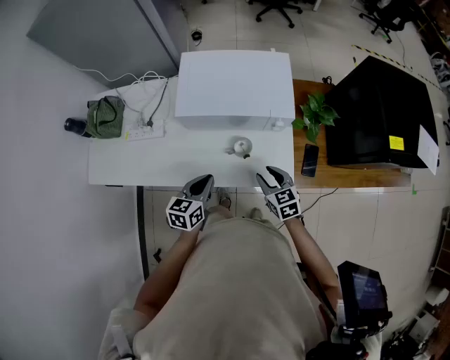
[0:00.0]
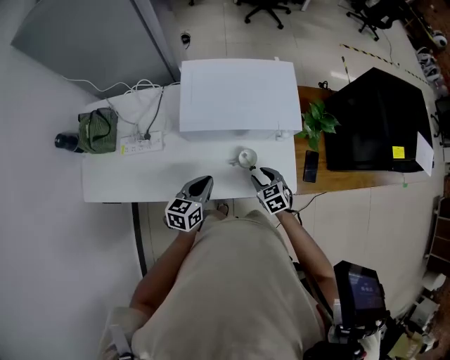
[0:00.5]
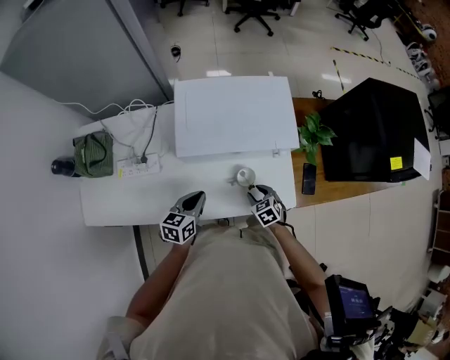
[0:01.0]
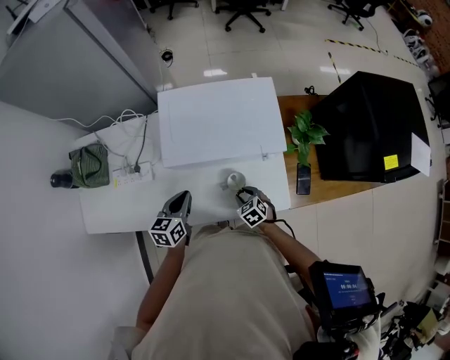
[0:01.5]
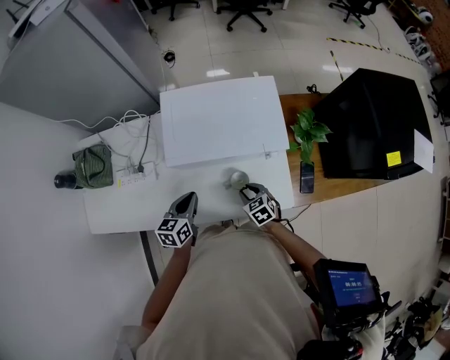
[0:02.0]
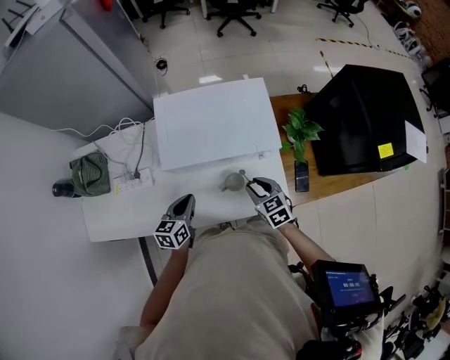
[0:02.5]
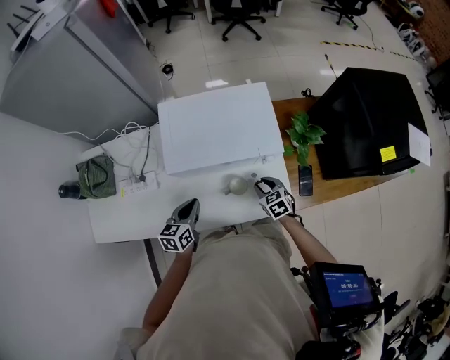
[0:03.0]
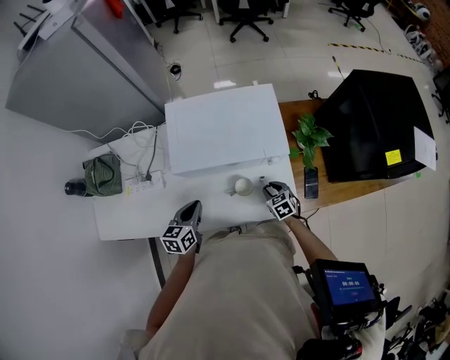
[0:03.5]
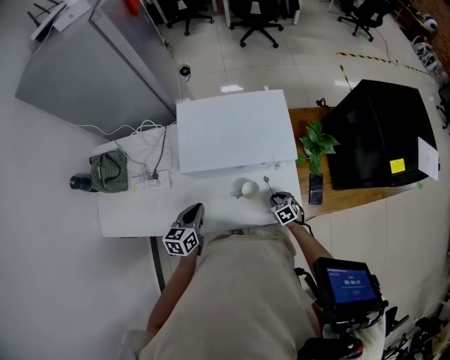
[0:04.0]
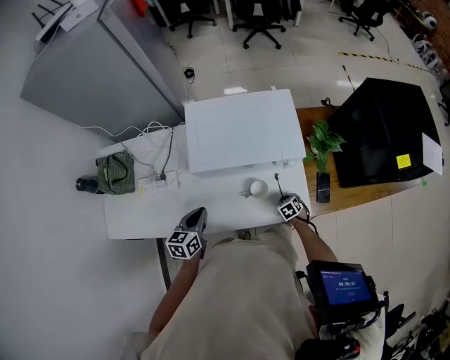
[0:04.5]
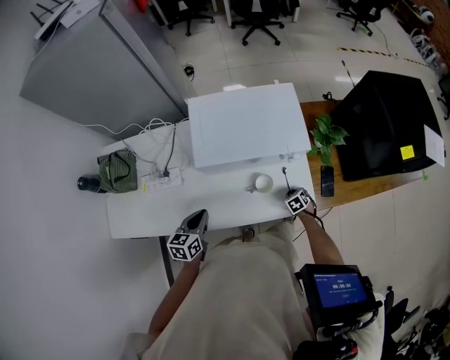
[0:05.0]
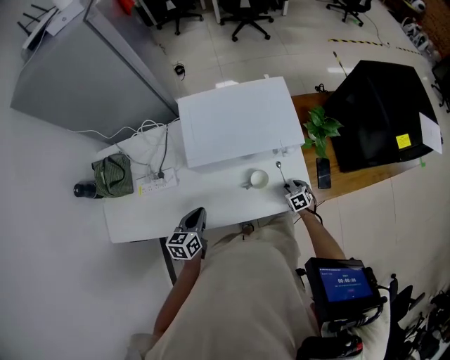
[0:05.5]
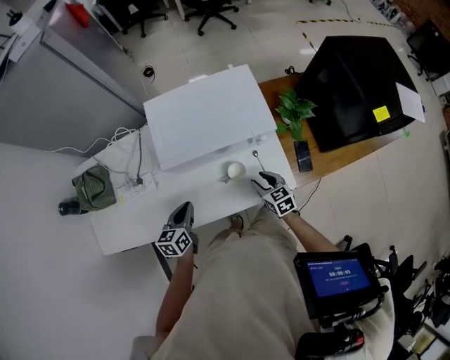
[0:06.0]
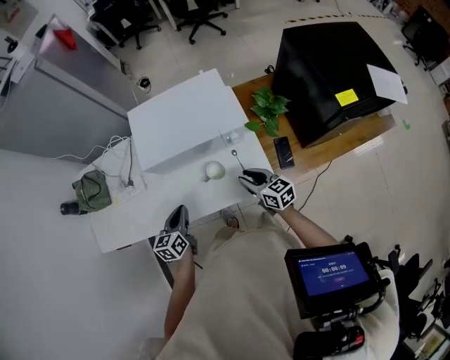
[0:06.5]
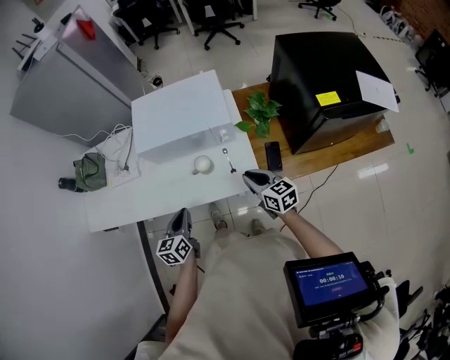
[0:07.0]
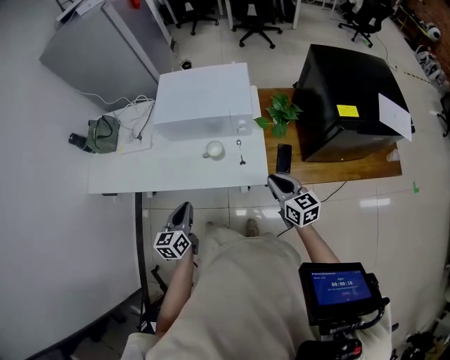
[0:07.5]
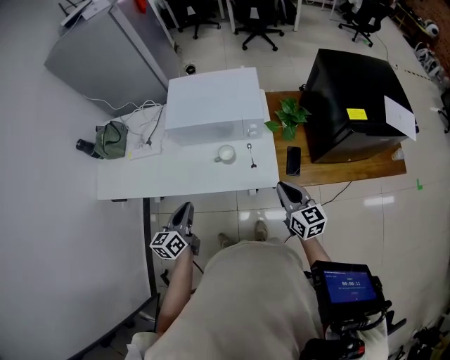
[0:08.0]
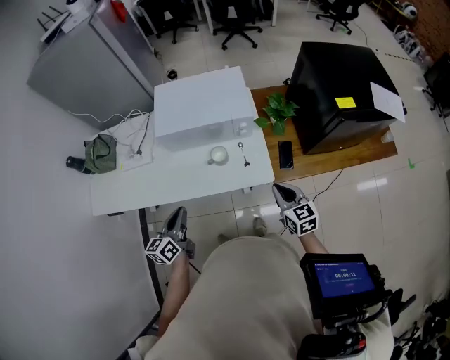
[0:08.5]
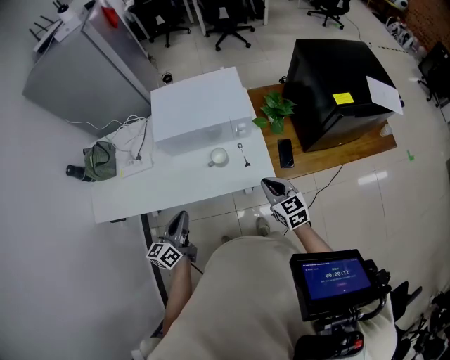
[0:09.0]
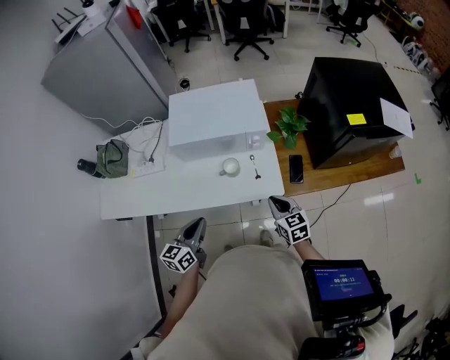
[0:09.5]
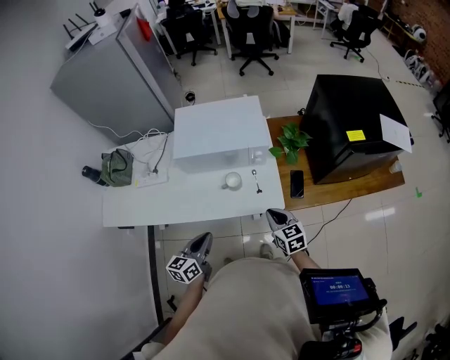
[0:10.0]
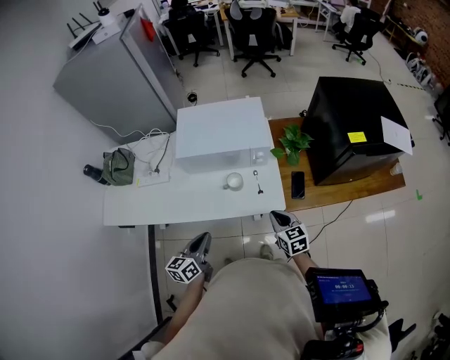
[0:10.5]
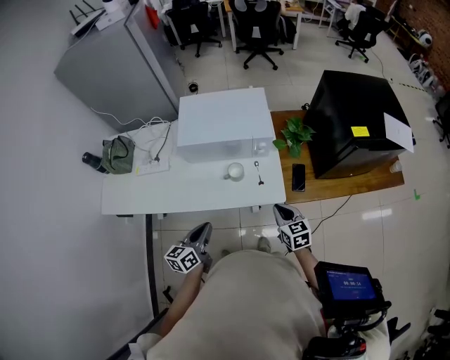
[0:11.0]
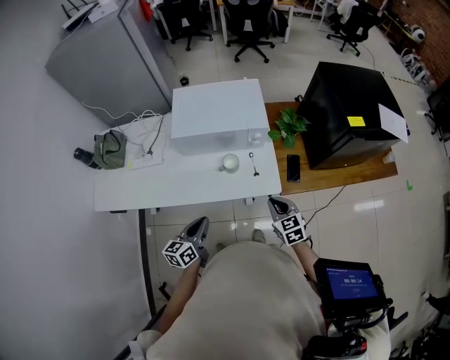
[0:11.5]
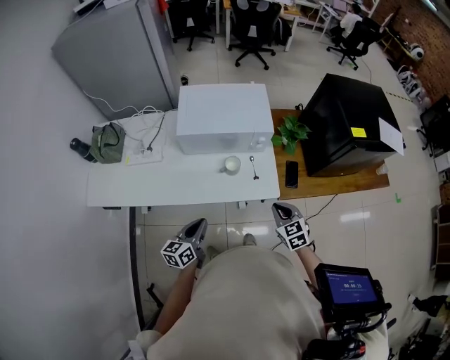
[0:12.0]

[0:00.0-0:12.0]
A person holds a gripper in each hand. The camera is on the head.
0:00.0 to 0:02.0: The left gripper heads forward and to the left, covering approximately 15 cm; the right gripper is displaced downward, forward and to the left by roughly 15 cm.
0:02.0 to 0:04.0: The right gripper travels to the right and downward by about 15 cm.
0:04.0 to 0:06.0: The right gripper is displaced upward by about 10 cm, and swivels some 30 degrees.
0:06.0 to 0:08.0: The left gripper shifts roughly 20 cm backward and upward, and swivels approximately 20 degrees. The right gripper shifts some 30 cm upward, backward and to the right, rotates some 20 degrees, and closes its fingers.
0:08.0 to 0:10.0: The right gripper travels downward and to the left by roughly 10 cm.
0:10.0 to 0:12.0: The left gripper shifts by approximately 5 cm.

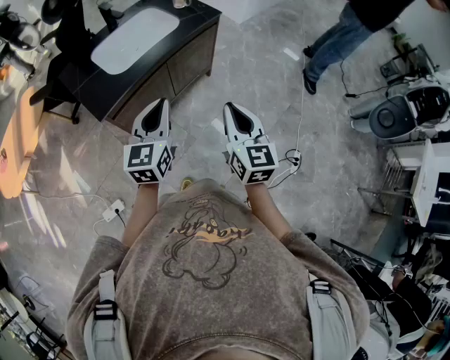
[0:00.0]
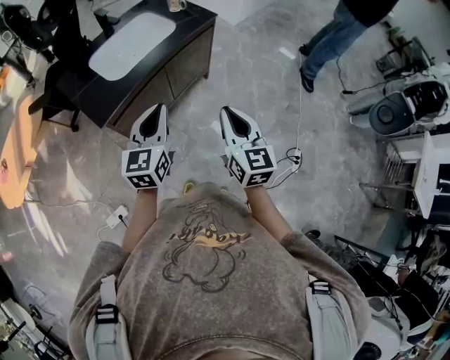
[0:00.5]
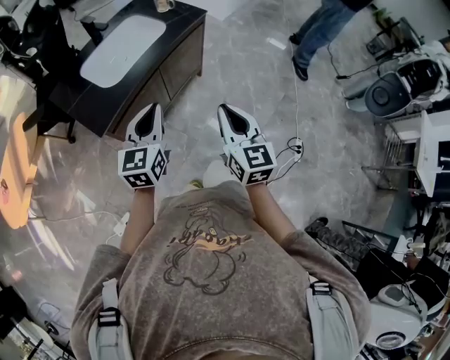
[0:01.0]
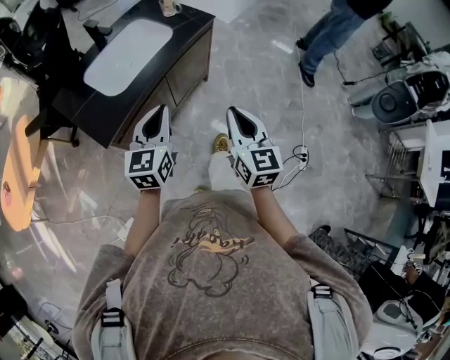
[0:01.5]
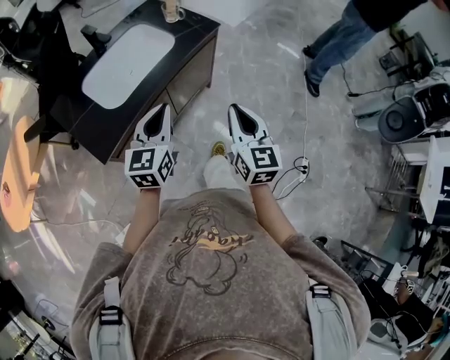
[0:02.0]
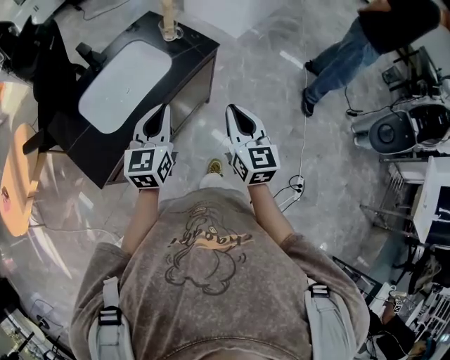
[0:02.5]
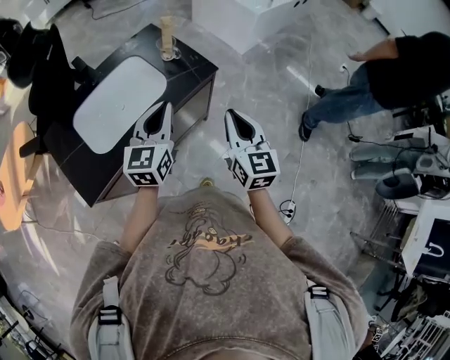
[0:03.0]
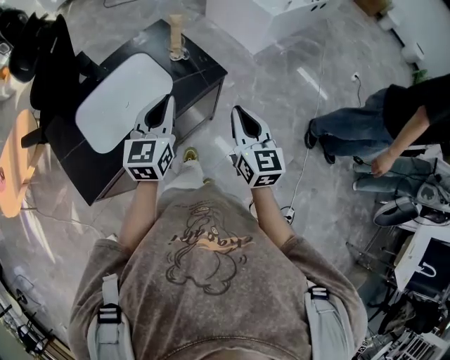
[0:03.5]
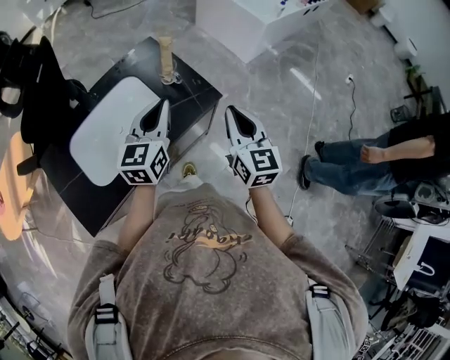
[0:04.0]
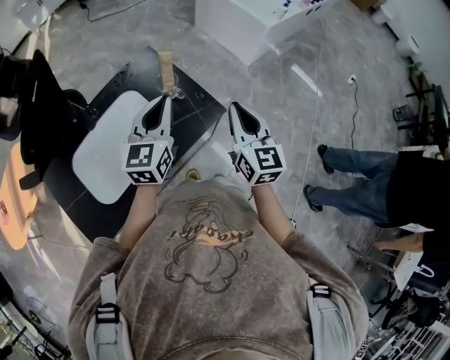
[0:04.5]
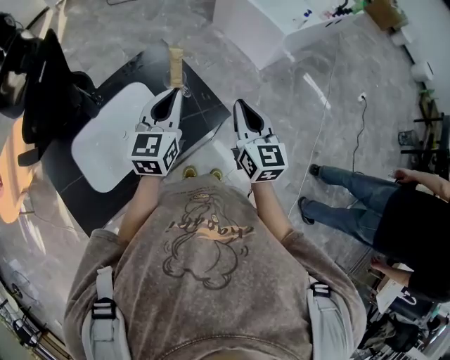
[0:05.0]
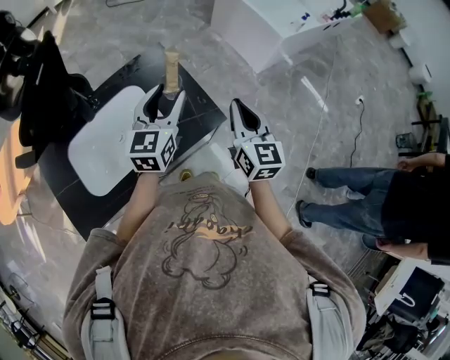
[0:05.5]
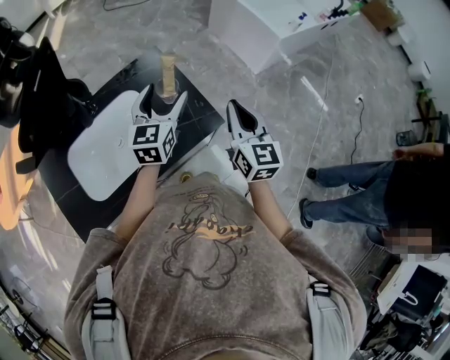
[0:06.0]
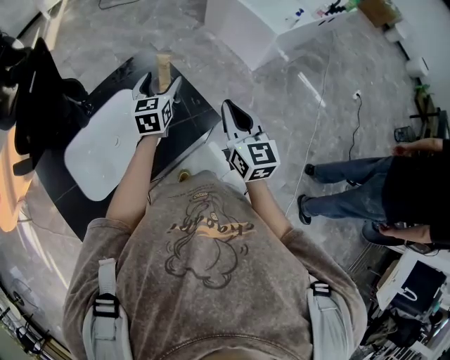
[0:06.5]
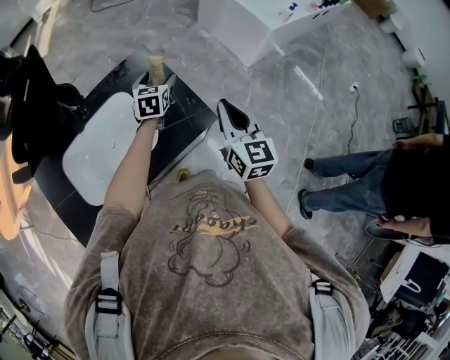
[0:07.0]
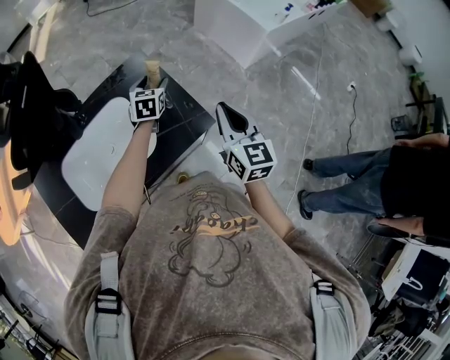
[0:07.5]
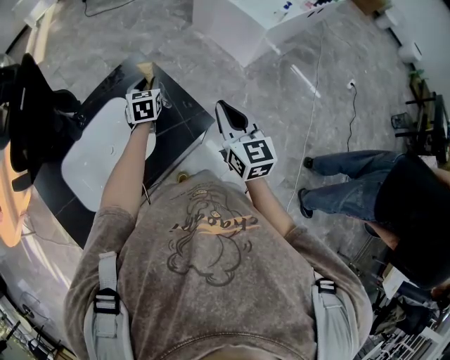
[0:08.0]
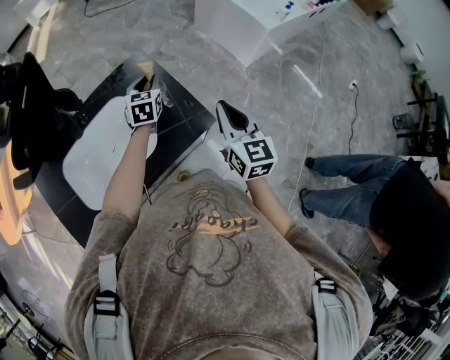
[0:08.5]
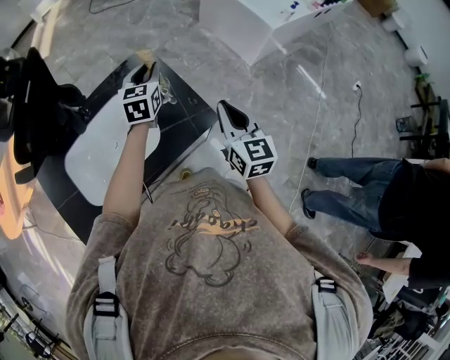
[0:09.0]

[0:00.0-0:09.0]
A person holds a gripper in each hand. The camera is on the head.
0:00.0 to 0:02.0: The grippers both shift forward by roughly 15 cm.
0:02.0 to 0:04.5: The two grippers travel together, forward, about 40 cm.
0:04.5 to 0:07.0: The left gripper shifts approximately 25 cm forward and downward, turns by about 20 degrees, and opens.
0:07.0 to 0:09.0: The left gripper heads upward, covering about 10 cm, and closes.

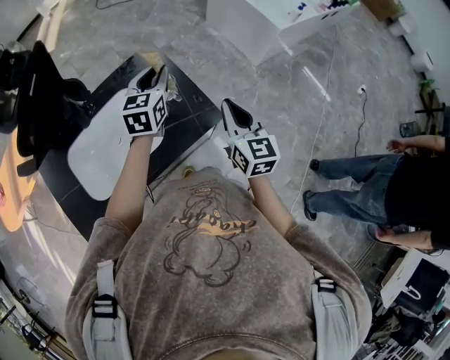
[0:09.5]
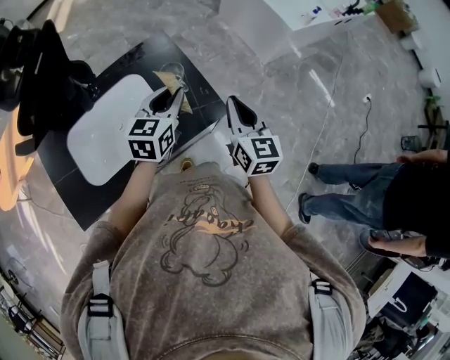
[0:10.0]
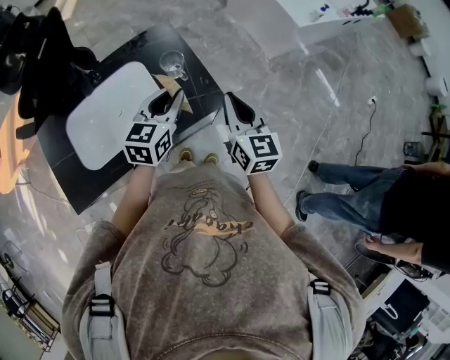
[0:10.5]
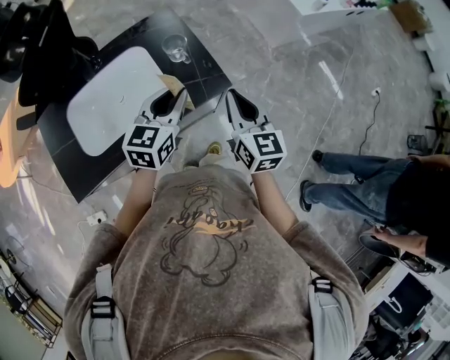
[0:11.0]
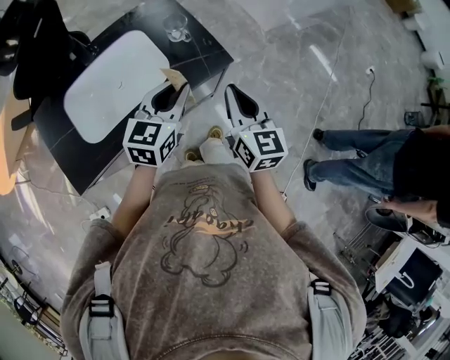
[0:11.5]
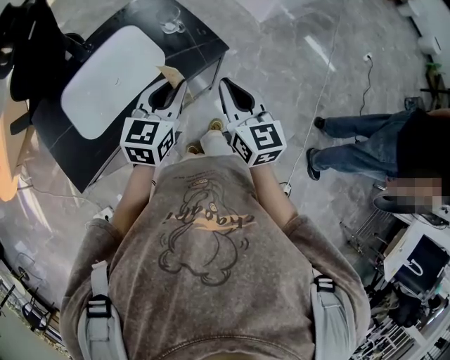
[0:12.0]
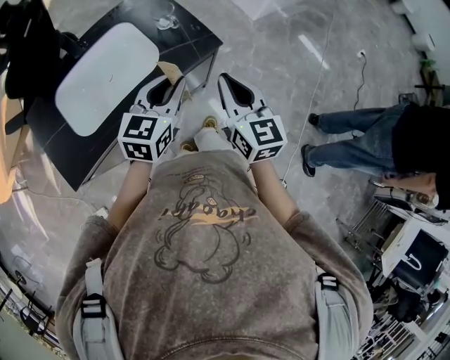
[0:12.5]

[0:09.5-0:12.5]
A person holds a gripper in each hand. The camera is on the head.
0:09.5 to 0:11.0: The right gripper goes approximately 5 cm backward. Meanwhile the left gripper is displaced backward by roughly 20 cm.
0:11.0 to 0:12.5: Both grippers travel together backward, about 10 cm.

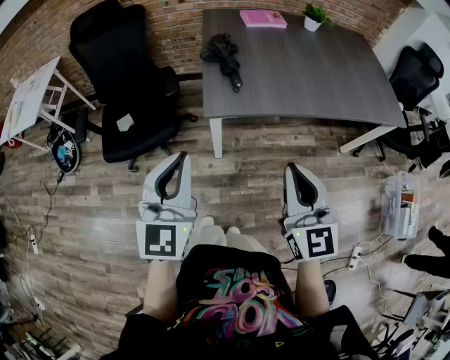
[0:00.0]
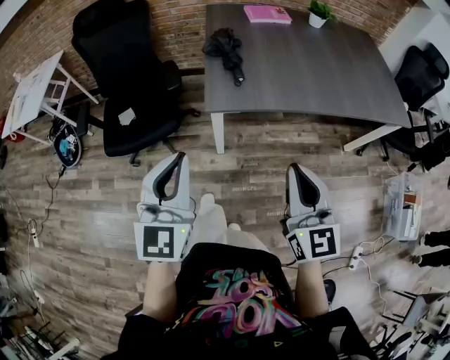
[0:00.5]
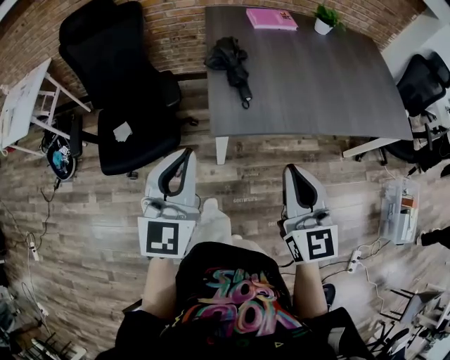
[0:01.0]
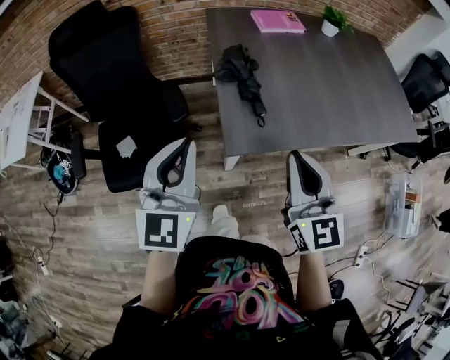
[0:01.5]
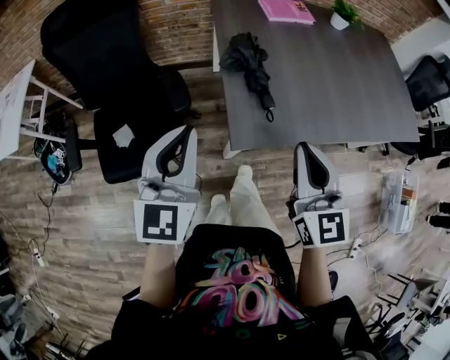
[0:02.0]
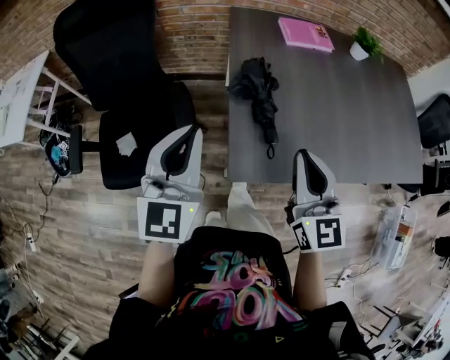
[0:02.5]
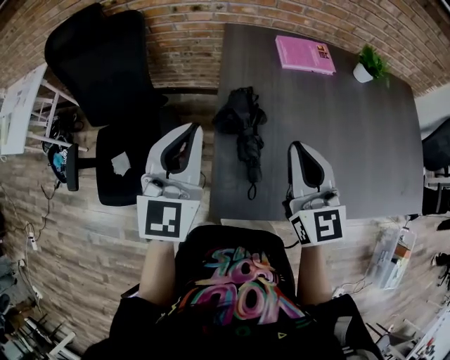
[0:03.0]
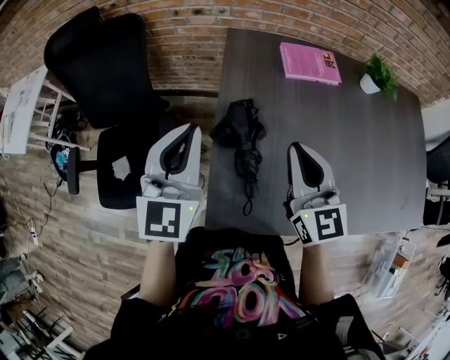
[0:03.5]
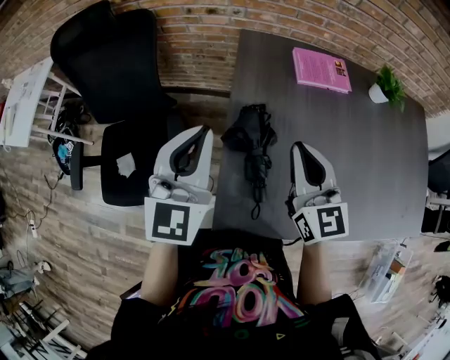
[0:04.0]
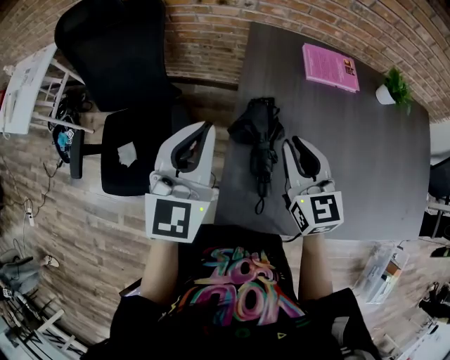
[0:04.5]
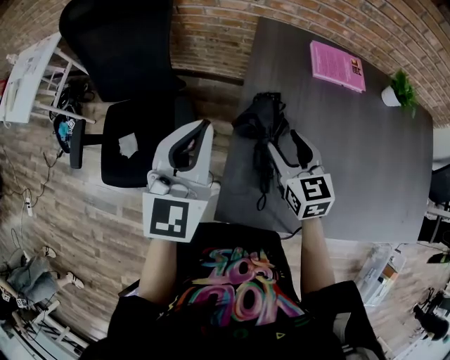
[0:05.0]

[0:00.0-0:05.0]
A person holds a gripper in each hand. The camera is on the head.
0:00.0 to 0:02.5: Both grippers travel together forward, roughly 30 cm.
0:02.5 to 0:05.0: The left gripper goes roughly 15 cm forward; the right gripper moves forward and downward, about 25 cm, swivels roughly 30 degrees, and opens.
